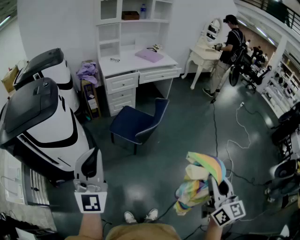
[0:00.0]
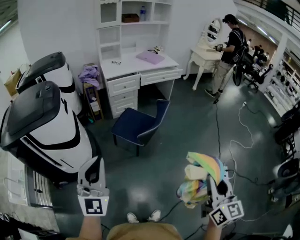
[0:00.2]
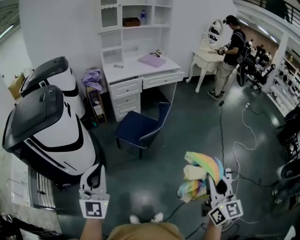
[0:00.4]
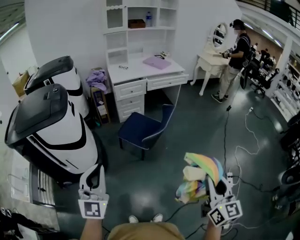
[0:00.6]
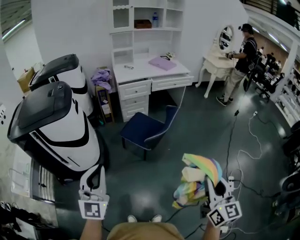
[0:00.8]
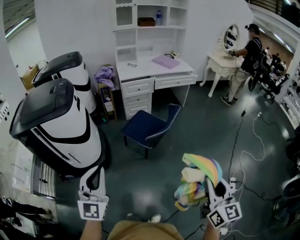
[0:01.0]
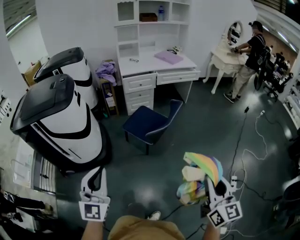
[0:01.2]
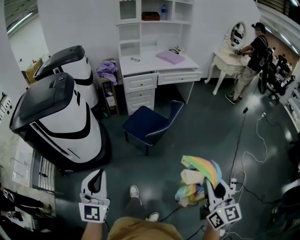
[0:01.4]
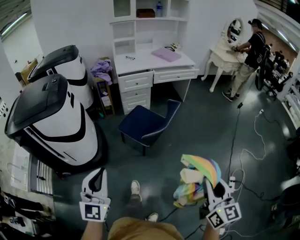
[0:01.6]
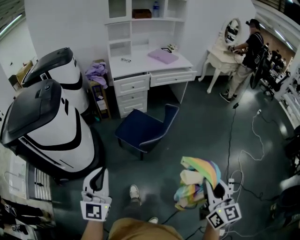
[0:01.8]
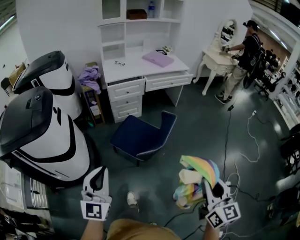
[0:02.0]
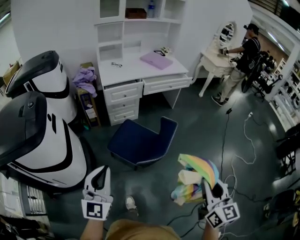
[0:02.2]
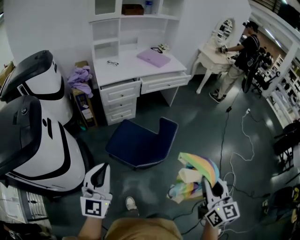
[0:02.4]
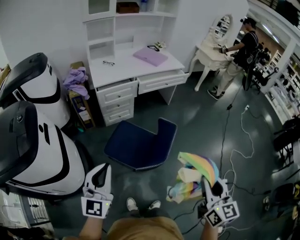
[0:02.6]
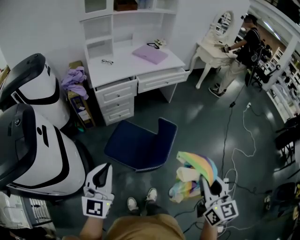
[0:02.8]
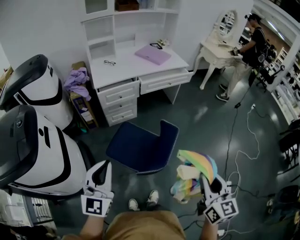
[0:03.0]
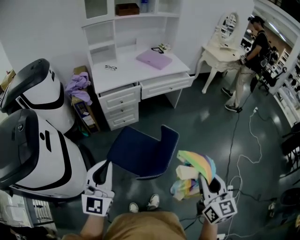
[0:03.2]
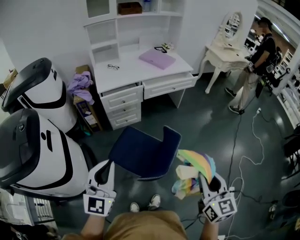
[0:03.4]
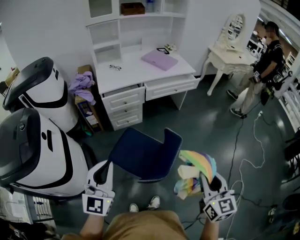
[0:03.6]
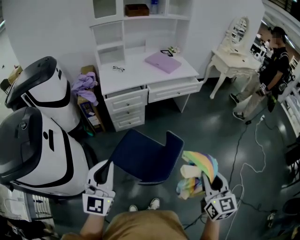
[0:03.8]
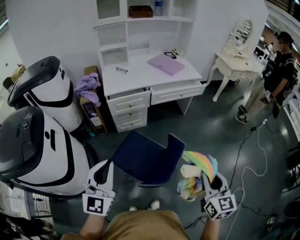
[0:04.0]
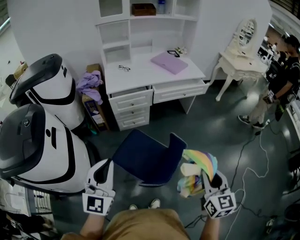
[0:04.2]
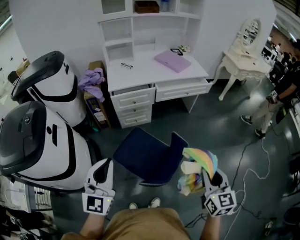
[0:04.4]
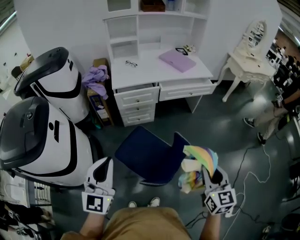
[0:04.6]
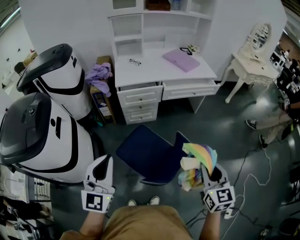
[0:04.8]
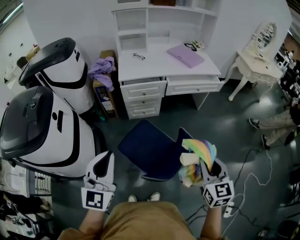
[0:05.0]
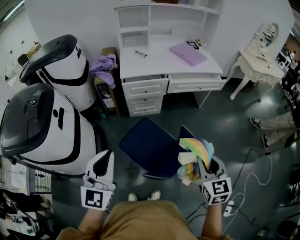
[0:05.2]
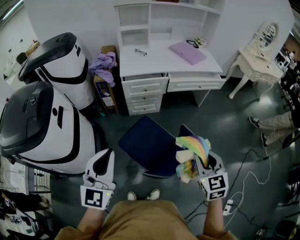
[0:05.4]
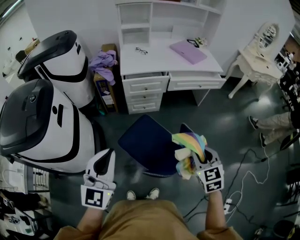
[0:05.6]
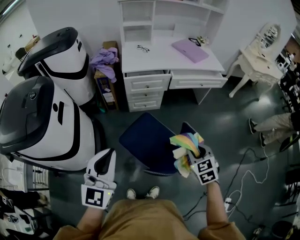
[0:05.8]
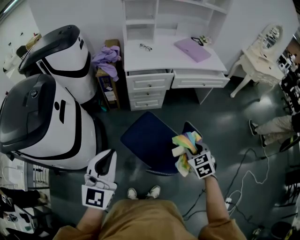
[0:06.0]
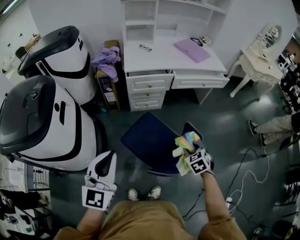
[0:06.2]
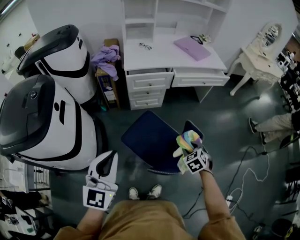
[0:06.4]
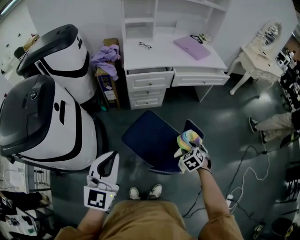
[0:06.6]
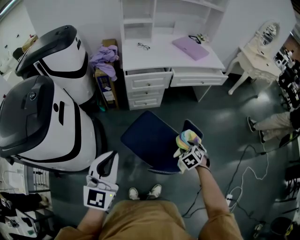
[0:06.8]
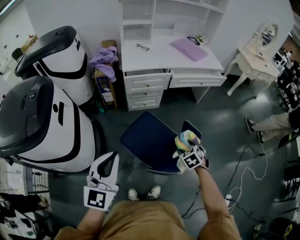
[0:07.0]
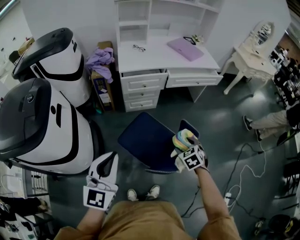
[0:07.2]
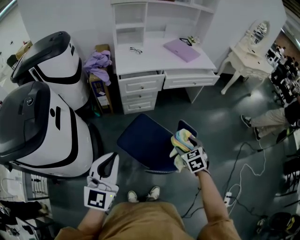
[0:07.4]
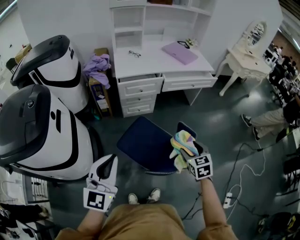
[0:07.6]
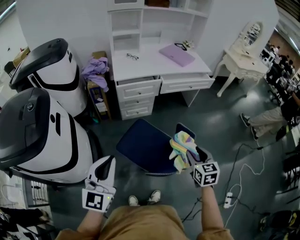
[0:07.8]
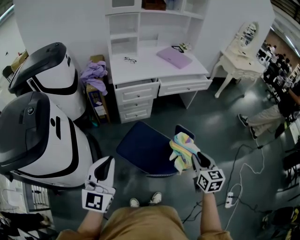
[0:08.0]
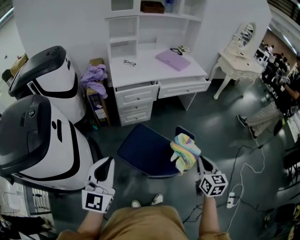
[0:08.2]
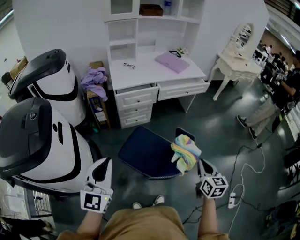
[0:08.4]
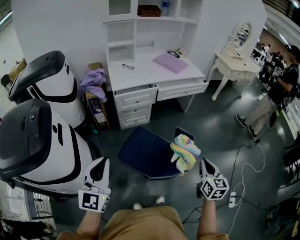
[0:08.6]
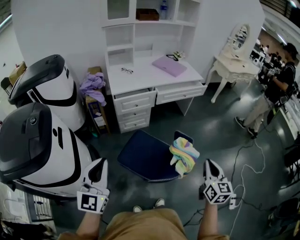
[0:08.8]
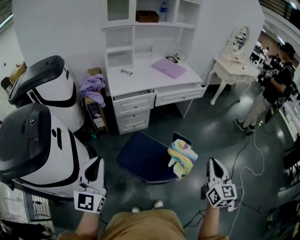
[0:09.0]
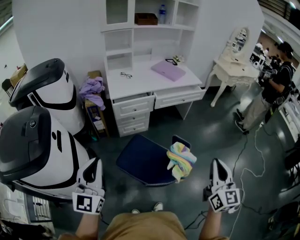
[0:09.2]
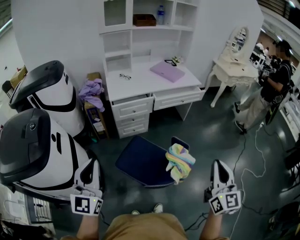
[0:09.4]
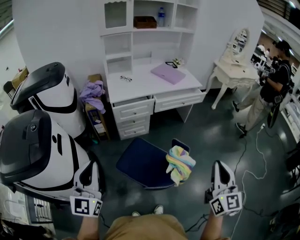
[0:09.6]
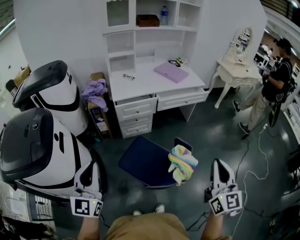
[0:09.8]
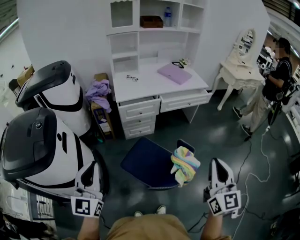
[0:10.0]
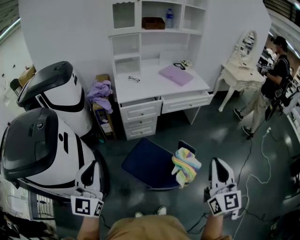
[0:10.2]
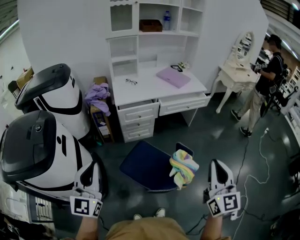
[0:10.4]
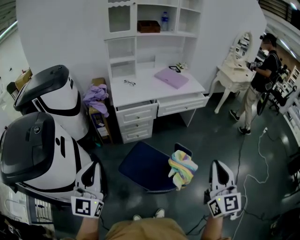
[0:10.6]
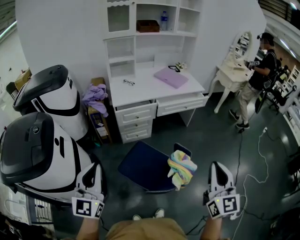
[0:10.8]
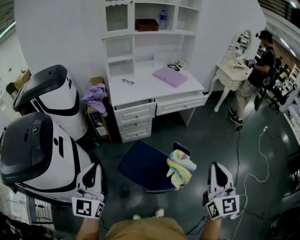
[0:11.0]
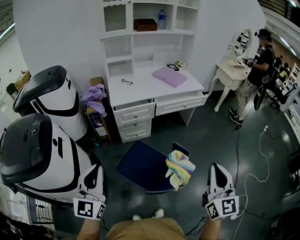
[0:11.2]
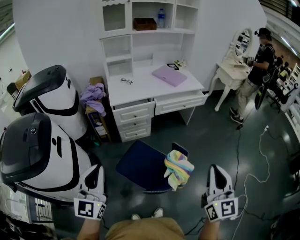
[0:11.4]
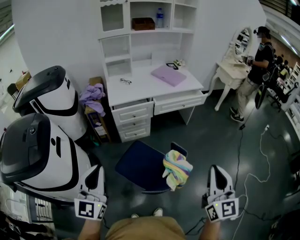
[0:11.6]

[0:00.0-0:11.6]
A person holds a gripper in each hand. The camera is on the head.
0:00.0 to 0:01.4: The right gripper changes place by some 10 cm. Meanwhile the left gripper shifts roughly 15 cm downward and backward, and turns by some 30 degrees.
0:01.4 to 0:02.8: The two grippers go some 40 cm forward.
0:02.8 to 0:04.4: The left gripper travels forward by about 10 cm; the right gripper shifts roughly 20 cm forward.
0:04.4 to 0:05.8: The left gripper changes place by roughly 5 cm; the right gripper moves downward, to the left and forward, some 20 cm, and turns by approximately 40 degrees.
0:05.8 to 0:07.2: The right gripper moves downward, about 10 cm, and opens up.
0:07.2 to 0:08.8: The left gripper travels to the left by approximately 5 cm. Meanwhile the right gripper heads upward, backward and to the right, covering approximately 25 cm, tilts its fingers about 40 degrees upward, and closes up.
0:08.8 to 0:10.2: The right gripper travels upward by some 15 cm, and turns by some 20 degrees. The left gripper travels upward by some 5 cm.
0:10.2 to 0:11.6: Both grippers travel together to the right, some 10 cm.

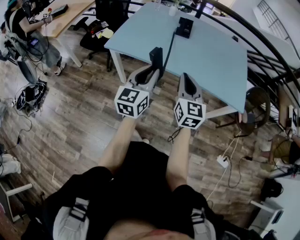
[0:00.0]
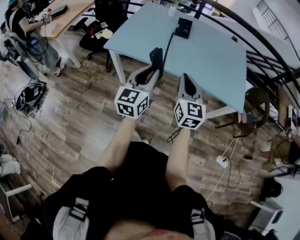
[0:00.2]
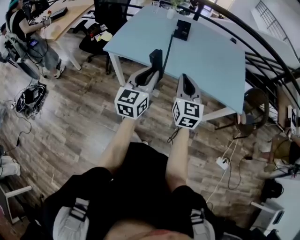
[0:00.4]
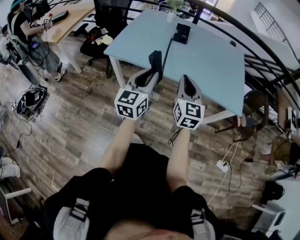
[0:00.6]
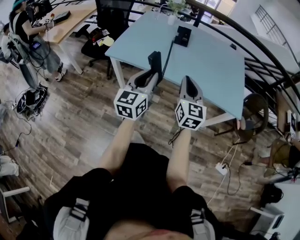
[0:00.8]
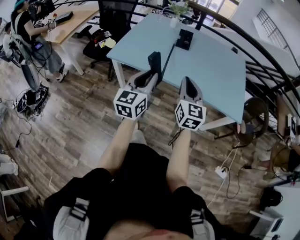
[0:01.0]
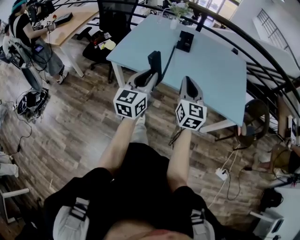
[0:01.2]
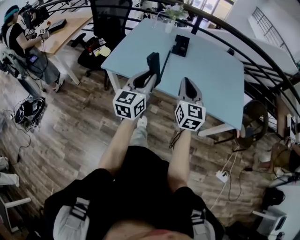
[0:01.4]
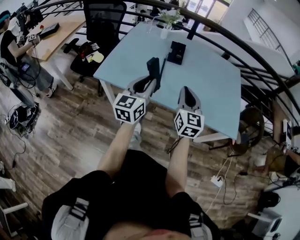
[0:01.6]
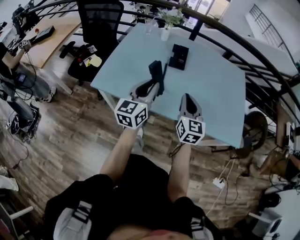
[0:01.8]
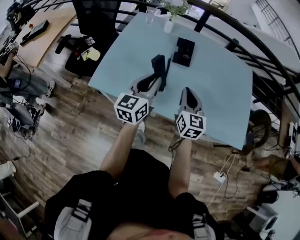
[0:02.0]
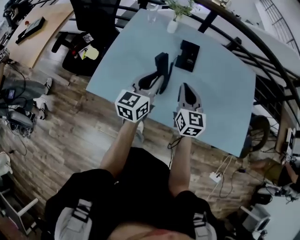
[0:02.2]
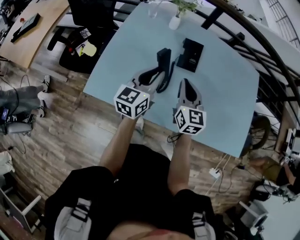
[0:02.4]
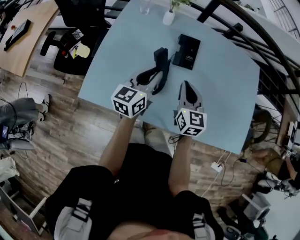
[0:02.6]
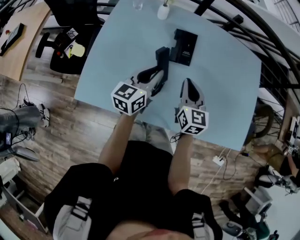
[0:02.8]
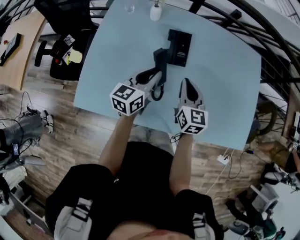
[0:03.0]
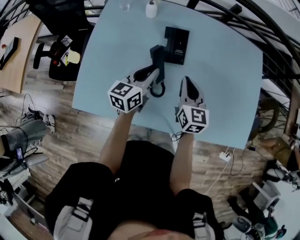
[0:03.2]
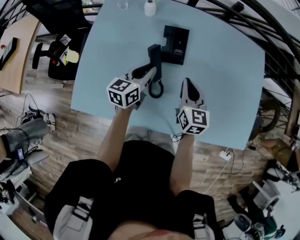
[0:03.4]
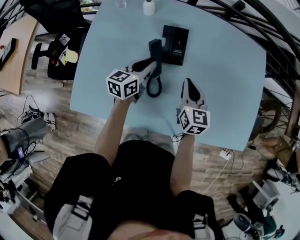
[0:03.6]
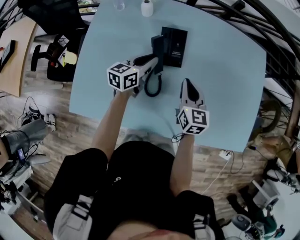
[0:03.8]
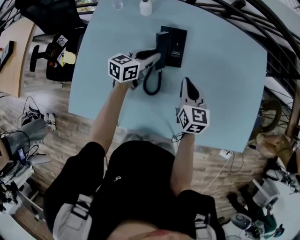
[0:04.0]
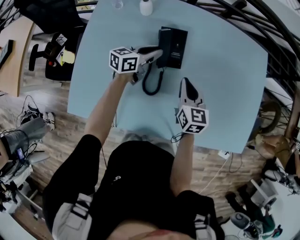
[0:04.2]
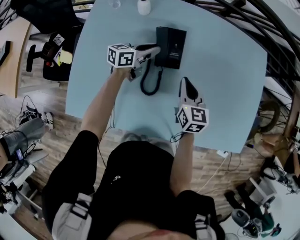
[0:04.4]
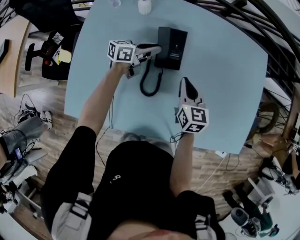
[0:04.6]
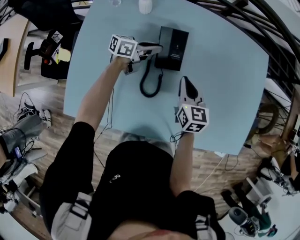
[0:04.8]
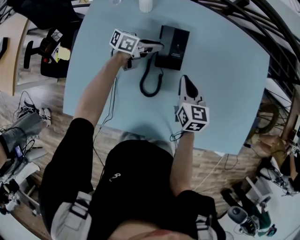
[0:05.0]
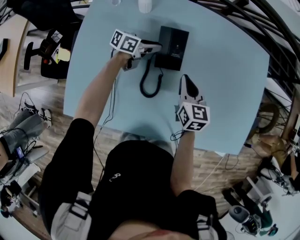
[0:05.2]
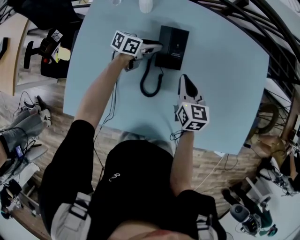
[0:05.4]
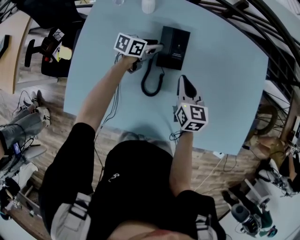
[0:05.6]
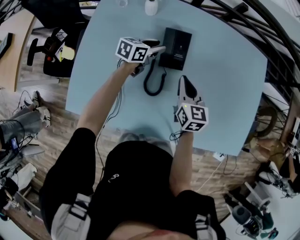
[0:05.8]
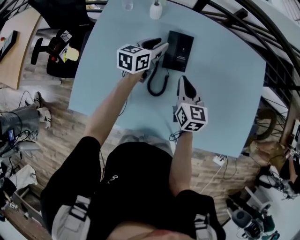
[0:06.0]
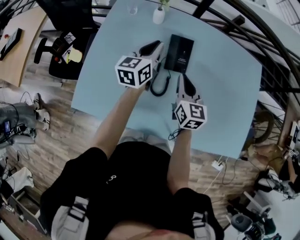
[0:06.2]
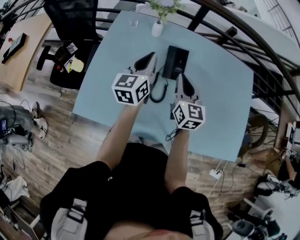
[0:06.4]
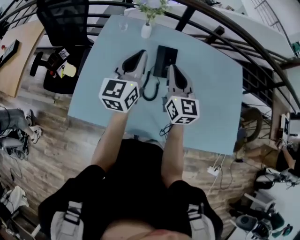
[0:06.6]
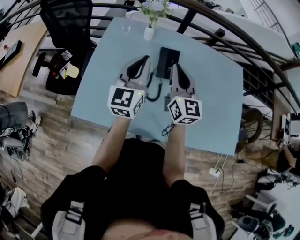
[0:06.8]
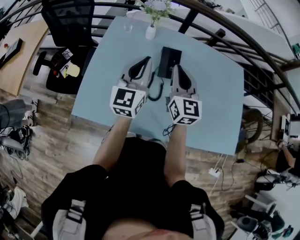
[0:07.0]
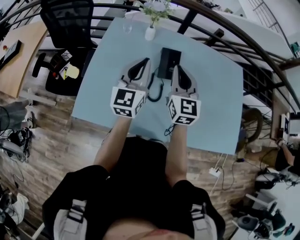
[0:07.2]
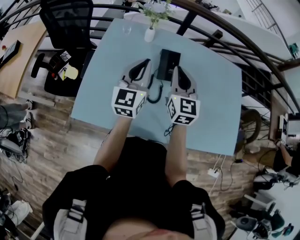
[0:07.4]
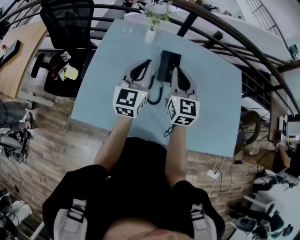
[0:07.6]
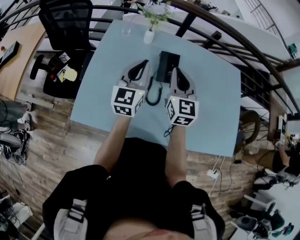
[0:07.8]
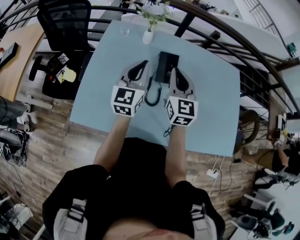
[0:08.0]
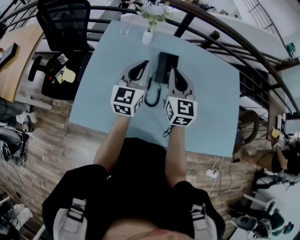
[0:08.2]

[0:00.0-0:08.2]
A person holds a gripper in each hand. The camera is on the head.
0:00.0 to 0:01.6: Both grippers travel together forward, approximately 15 cm.
0:01.6 to 0:03.2: Both grippers travel together forward and downward, approximately 35 cm. The left gripper swivels approximately 30 degrees.
0:03.2 to 0:05.0: The left gripper is displaced forward and downward by approximately 20 cm, and swivels some 40 degrees. Meanwhile the right gripper travels forward and downward by about 10 cm.
0:05.0 to 0:06.6: The right gripper goes roughly 20 cm upward, and swivels about 30 degrees. The left gripper shifts some 30 cm upward, and rotates roughly 70 degrees.
0:06.6 to 0:08.2: The grippers make only small movements.

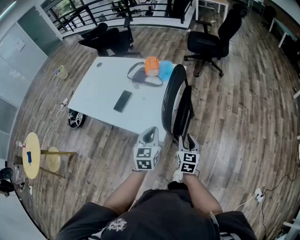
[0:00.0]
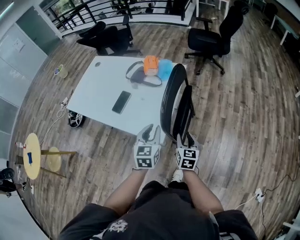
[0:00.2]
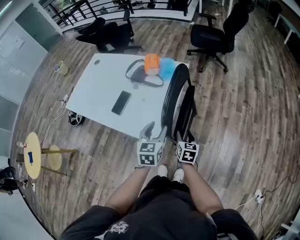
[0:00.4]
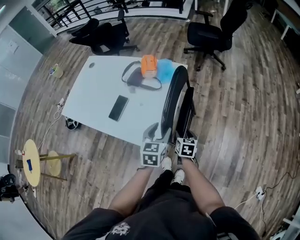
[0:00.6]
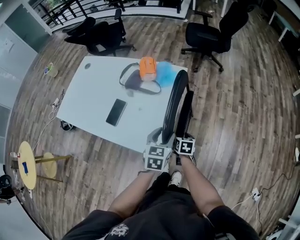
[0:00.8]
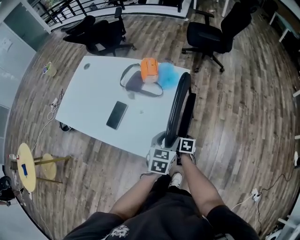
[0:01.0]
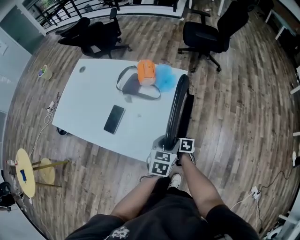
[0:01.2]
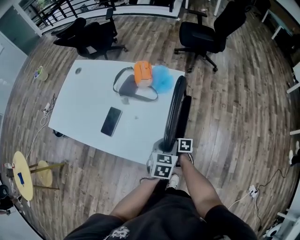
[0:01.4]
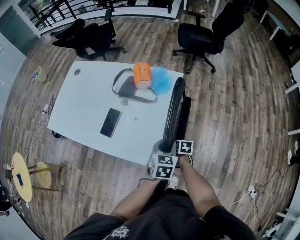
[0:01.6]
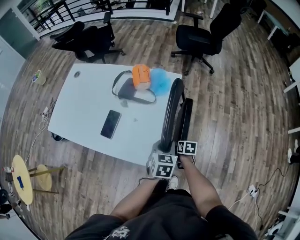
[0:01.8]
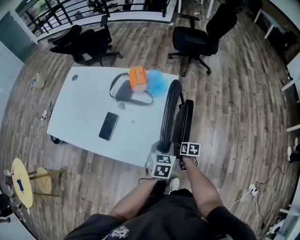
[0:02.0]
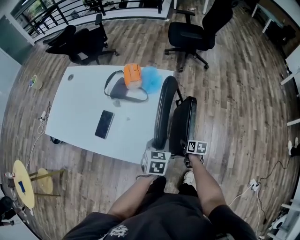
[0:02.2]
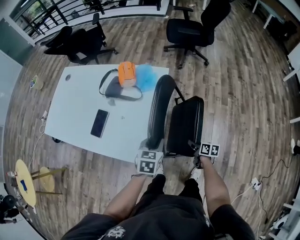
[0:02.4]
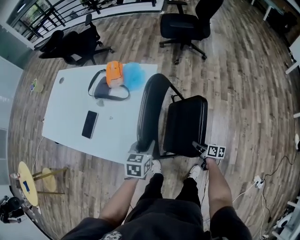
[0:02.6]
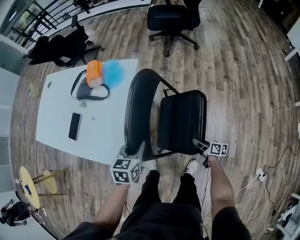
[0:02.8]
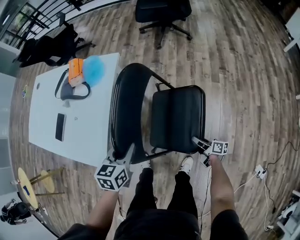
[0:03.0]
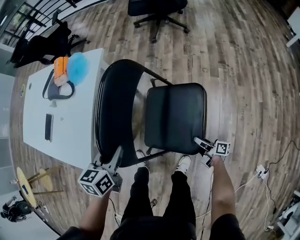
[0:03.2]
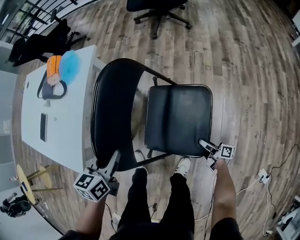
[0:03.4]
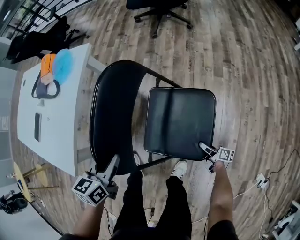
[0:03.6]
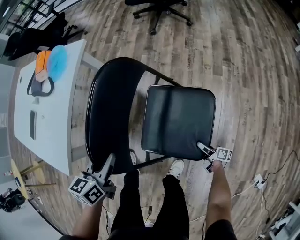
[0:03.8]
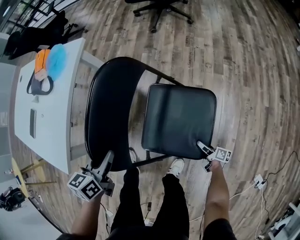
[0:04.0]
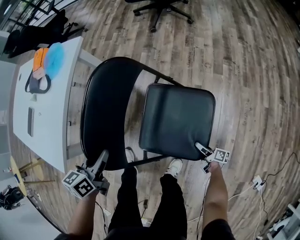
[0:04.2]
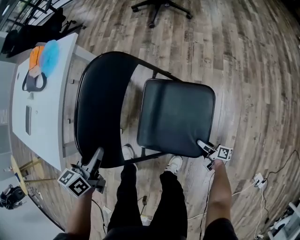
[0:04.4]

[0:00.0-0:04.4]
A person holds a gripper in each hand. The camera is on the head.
0:00.0 to 0:01.4: The right gripper shifts approximately 30 cm downward and forward, tips its fingers downward by some 30 degrees, and opens up. The left gripper is displaced forward and downward by about 20 cm, rotates roughly 20 degrees, and opens up.
0:01.4 to 0:03.0: The left gripper moves to the right and downward, some 20 cm; the right gripper shifts approximately 40 cm to the right, and points its fingers some 40 degrees further upward.
0:03.0 to 0:04.4: The left gripper travels downward and to the right by about 15 cm. The right gripper travels downward and to the right by about 25 cm, and opens its fingers.
